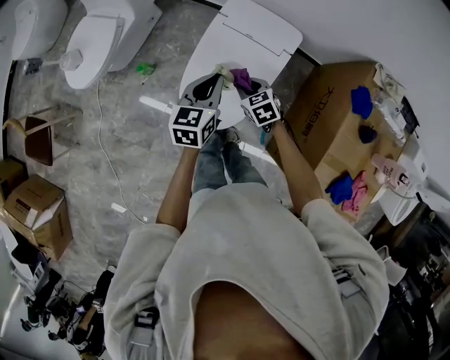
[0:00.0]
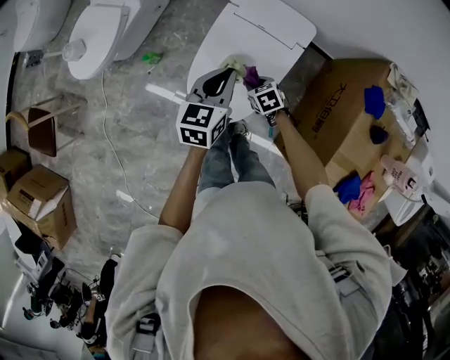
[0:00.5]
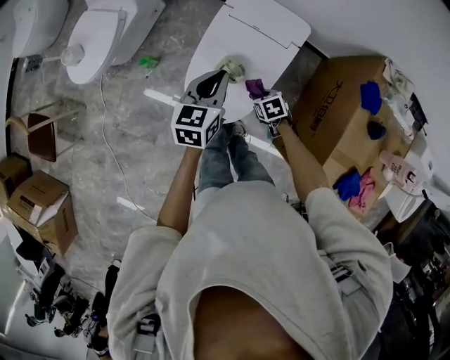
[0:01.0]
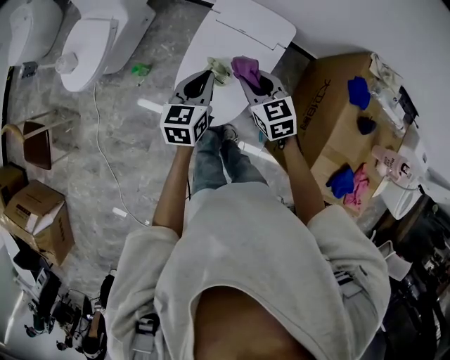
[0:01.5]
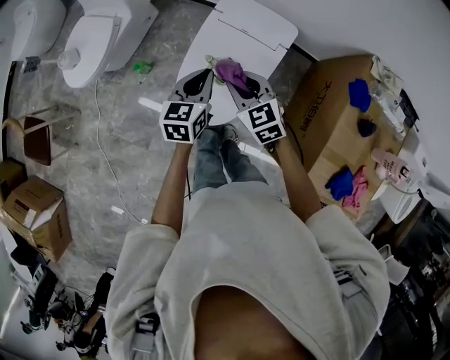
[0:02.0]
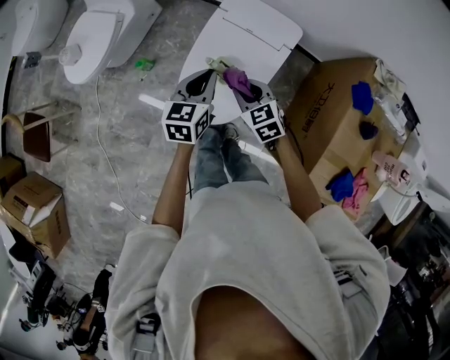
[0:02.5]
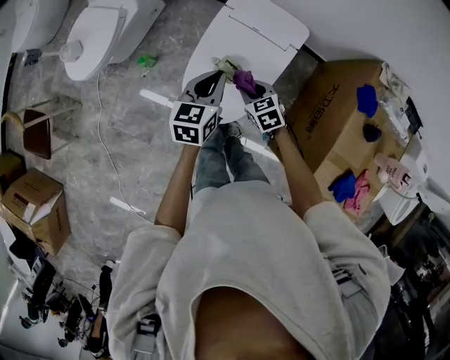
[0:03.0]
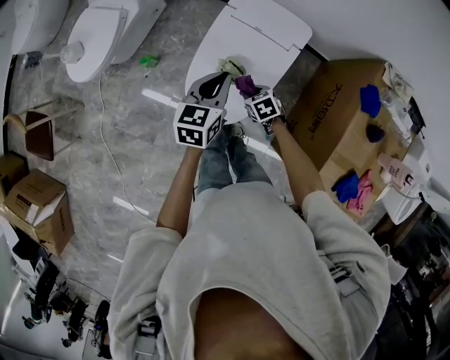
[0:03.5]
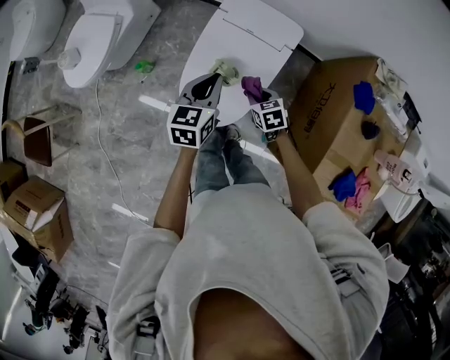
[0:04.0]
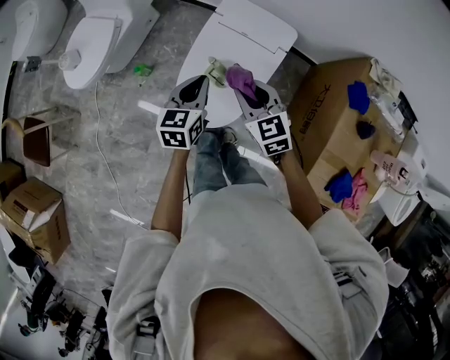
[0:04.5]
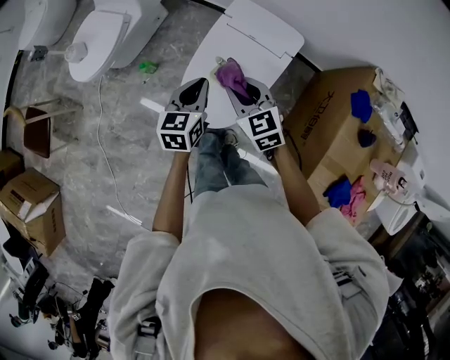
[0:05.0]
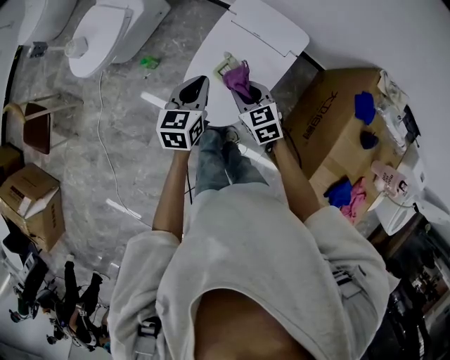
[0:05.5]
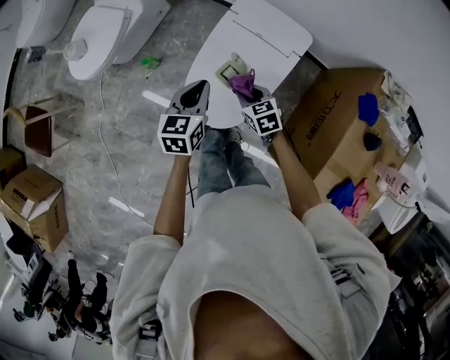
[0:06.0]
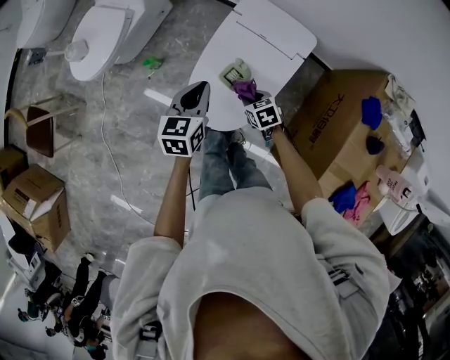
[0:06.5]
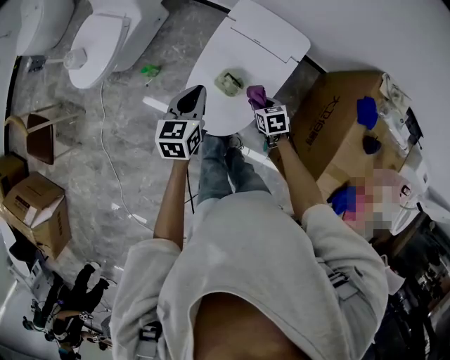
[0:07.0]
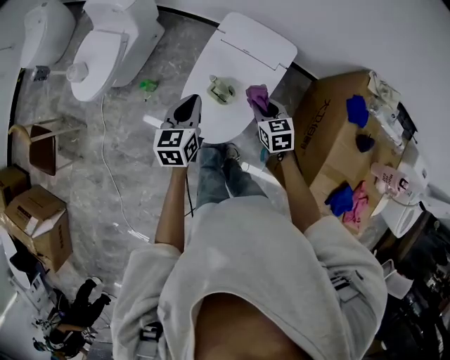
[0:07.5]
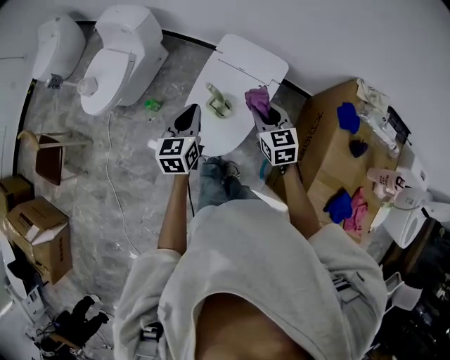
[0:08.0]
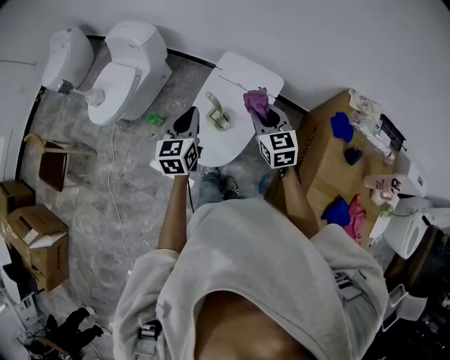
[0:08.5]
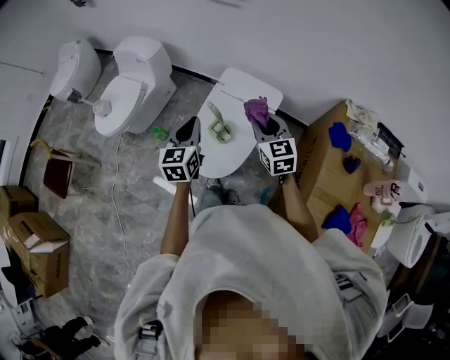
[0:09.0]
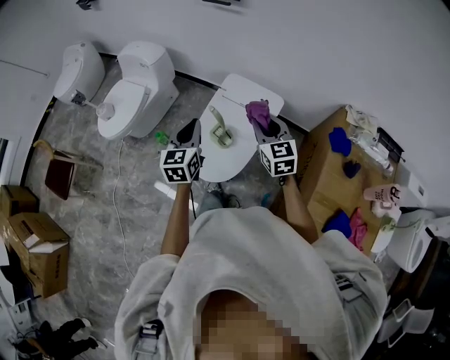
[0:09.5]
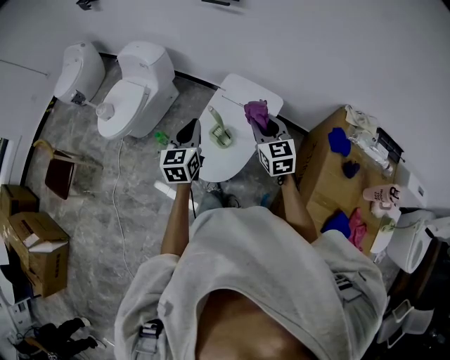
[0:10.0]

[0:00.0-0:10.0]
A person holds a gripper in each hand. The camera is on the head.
0:00.0 to 0:02.0: The right gripper is displaced upward by about 15 cm, and changes its angle by some 20 degrees.
0:02.0 to 0:04.0: The right gripper moves downward, some 15 cm, and swivels some 30 degrees.
0:04.0 to 0:06.0: The two grippers go some 5 cm to the left. The right gripper travels upward and back again, roughly 20 cm each way.
0:06.0 to 0:08.0: The left gripper goes some 5 cm upward; the right gripper heads upward and to the right, covering roughly 20 cm, and swivels roughly 30 degrees.
0:08.0 to 0:10.0: Both grippers travel together upward, roughly 10 cm.

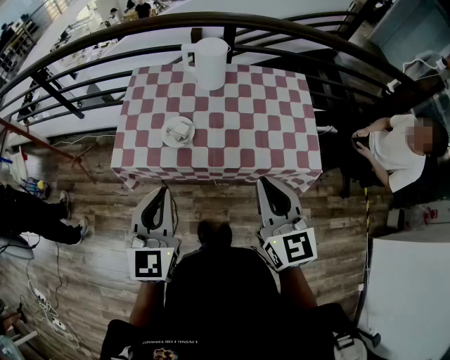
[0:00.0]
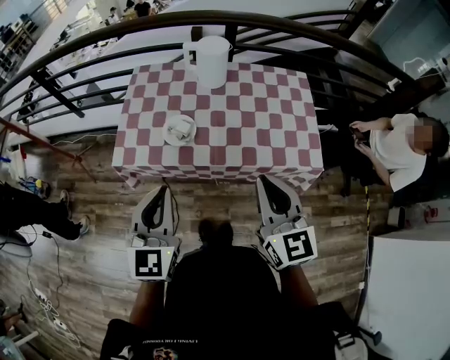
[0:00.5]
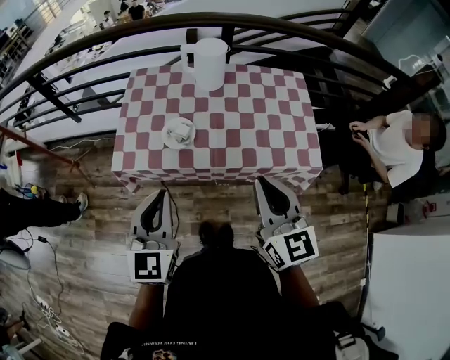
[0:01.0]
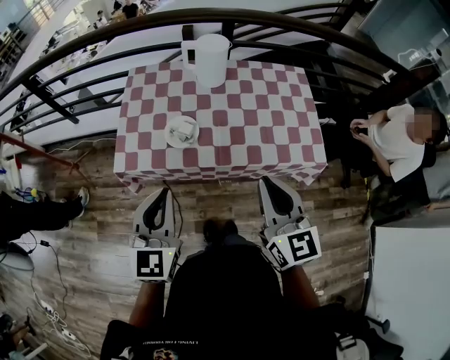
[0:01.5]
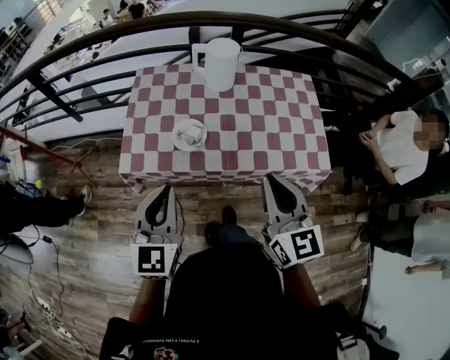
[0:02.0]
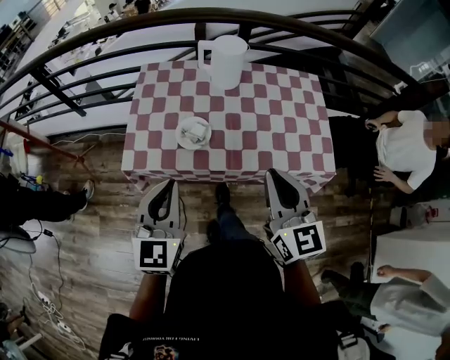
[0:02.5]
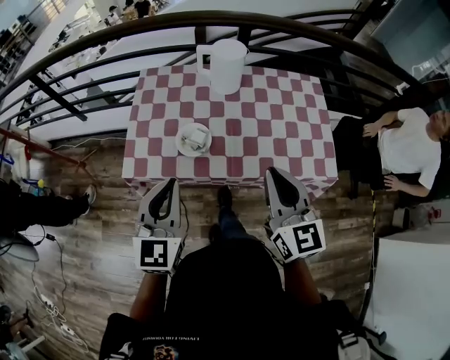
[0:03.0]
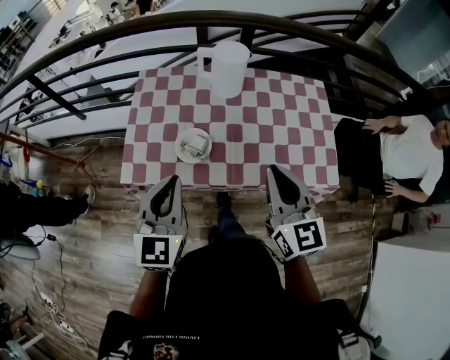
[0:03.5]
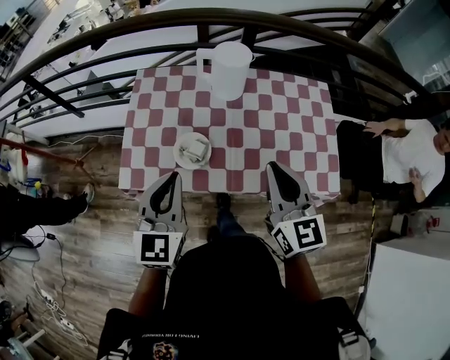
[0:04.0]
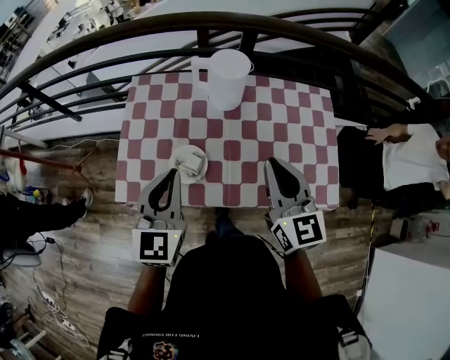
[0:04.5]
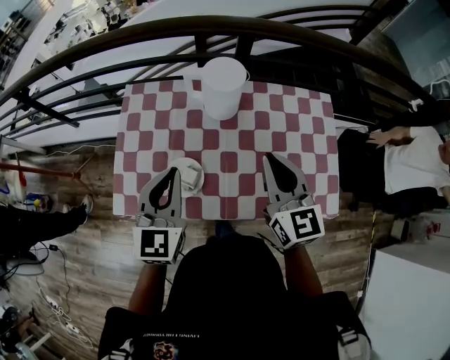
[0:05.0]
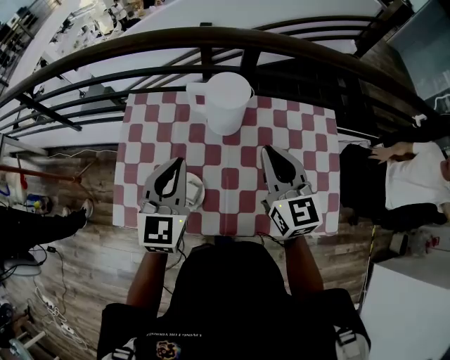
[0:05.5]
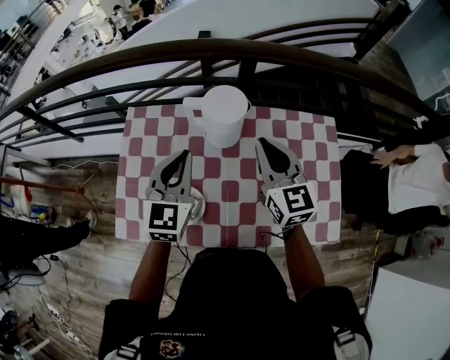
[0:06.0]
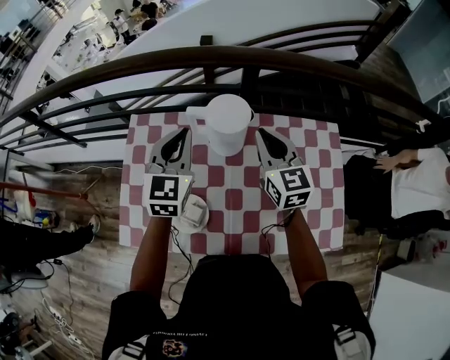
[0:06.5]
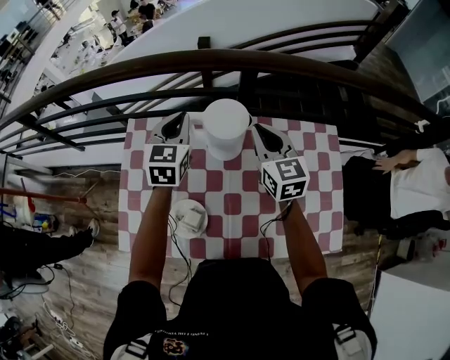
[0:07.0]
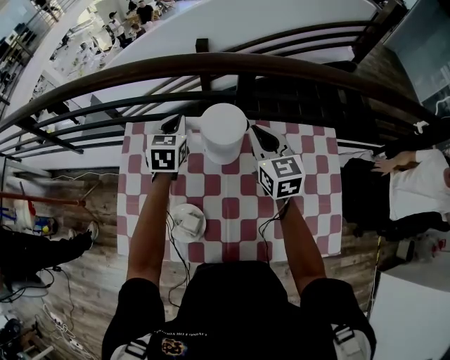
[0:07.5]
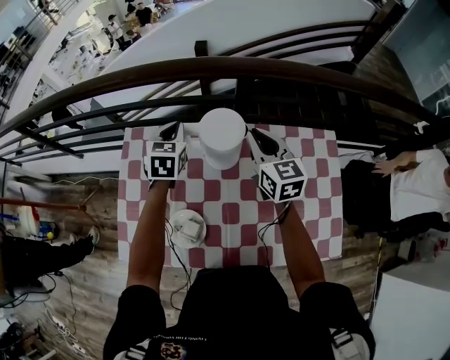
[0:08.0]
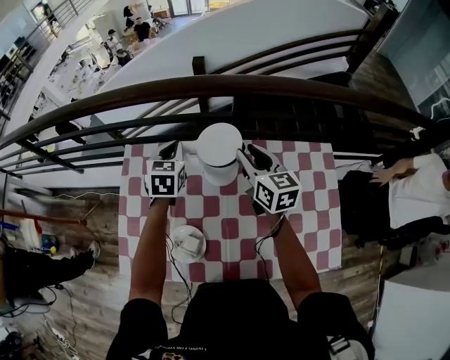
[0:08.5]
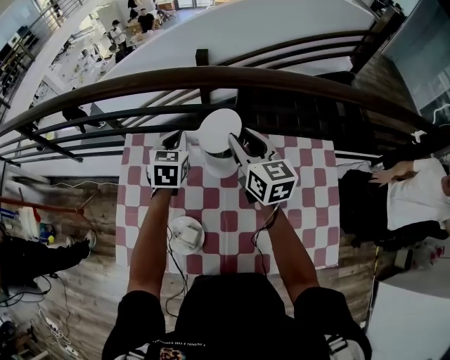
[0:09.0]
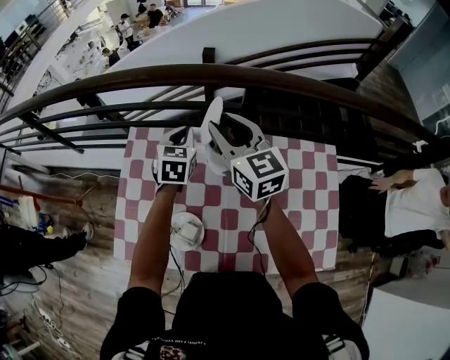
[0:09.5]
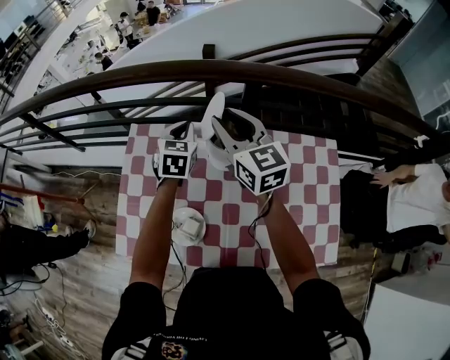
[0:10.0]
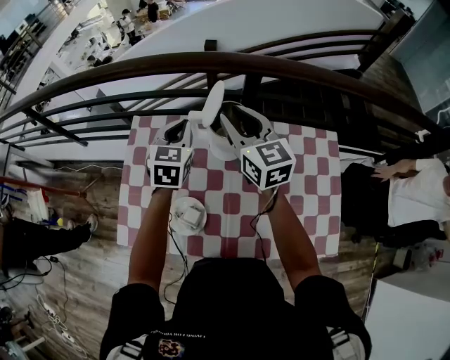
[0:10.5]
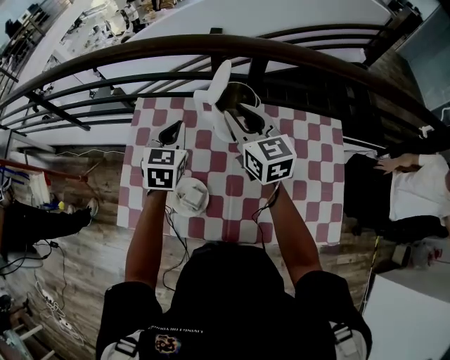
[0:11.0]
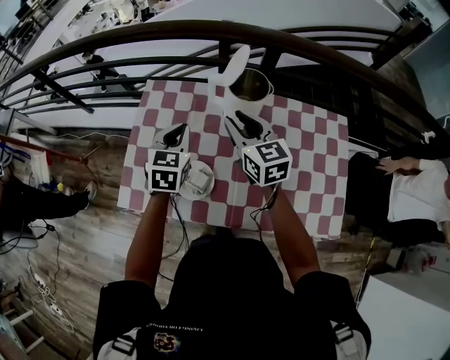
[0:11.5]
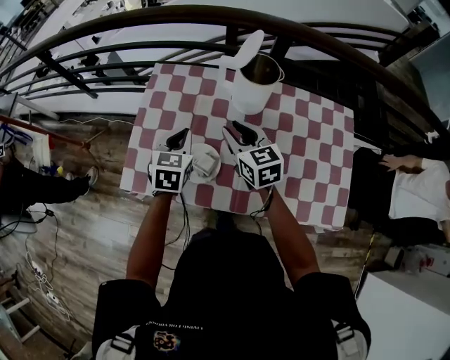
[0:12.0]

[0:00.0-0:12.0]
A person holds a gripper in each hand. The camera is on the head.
0:00.0 to 0:02.0: The grippers both shift to the left by some 5 cm.
0:02.0 to 0:04.0: Both grippers move forward, about 15 cm.
0:04.0 to 0:06.0: Both grippers move forward, approximately 25 cm.
0:06.0 to 0:08.0: The right gripper heads forward, covering roughly 10 cm; the left gripper moves forward and downward, some 20 cm.
0:08.0 to 0:10.0: The right gripper heads to the left and upward, covering roughly 15 cm, and opens.
0:10.0 to 0:12.0: The left gripper shifts approximately 25 cm backward and to the left. Meanwhile the right gripper moves backward, downward and to the left, about 25 cm.

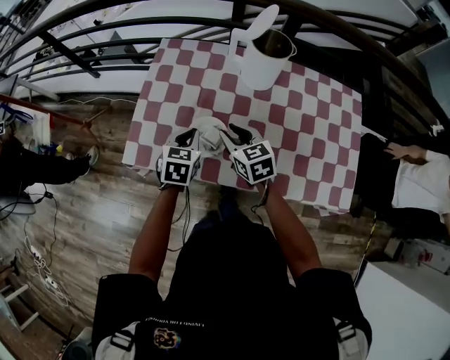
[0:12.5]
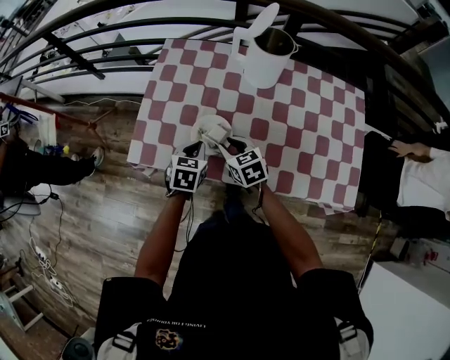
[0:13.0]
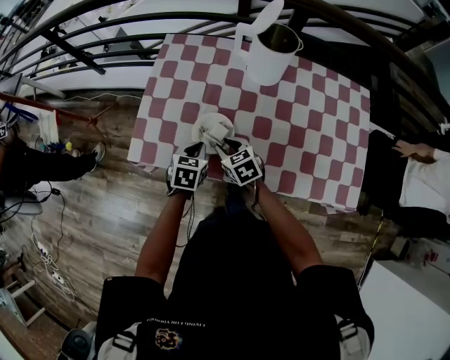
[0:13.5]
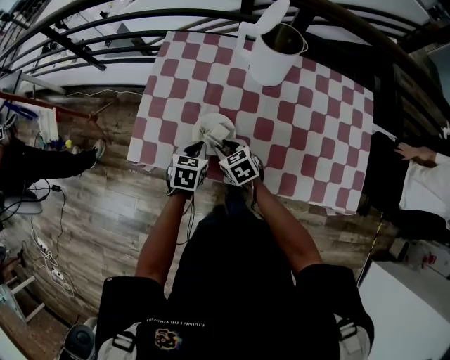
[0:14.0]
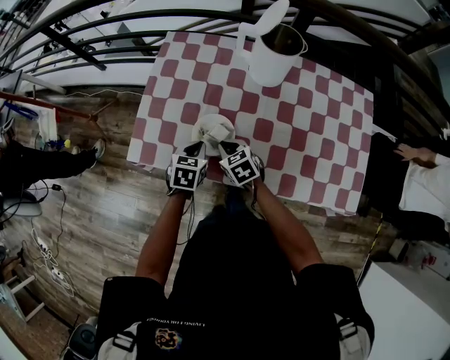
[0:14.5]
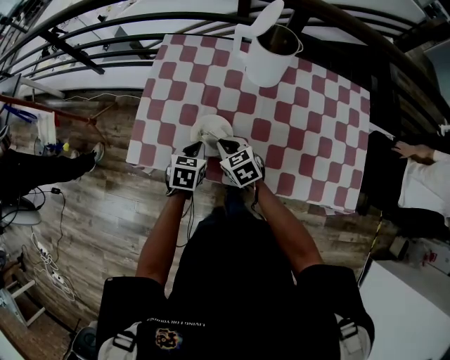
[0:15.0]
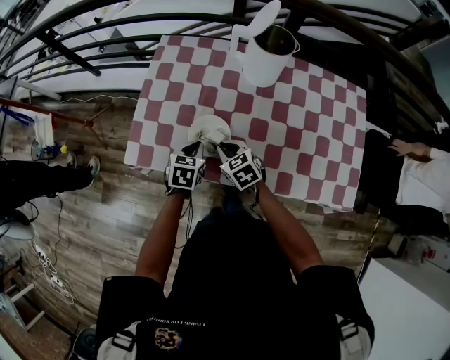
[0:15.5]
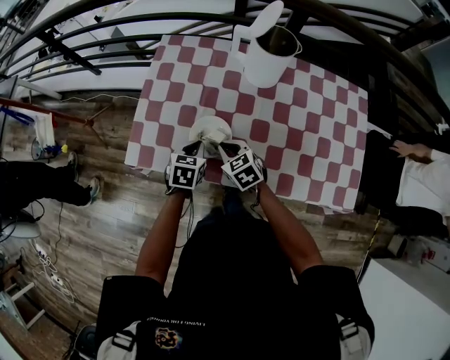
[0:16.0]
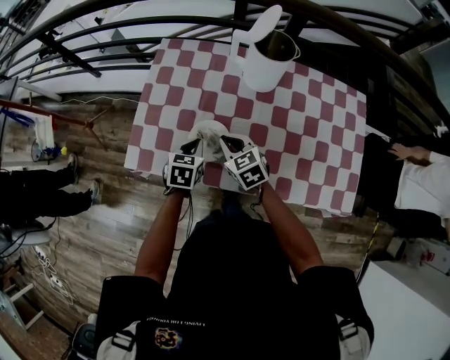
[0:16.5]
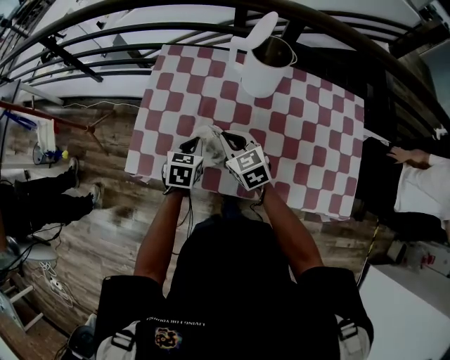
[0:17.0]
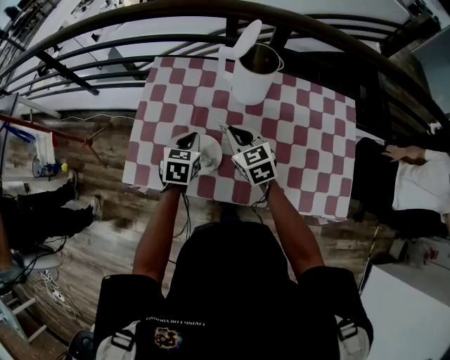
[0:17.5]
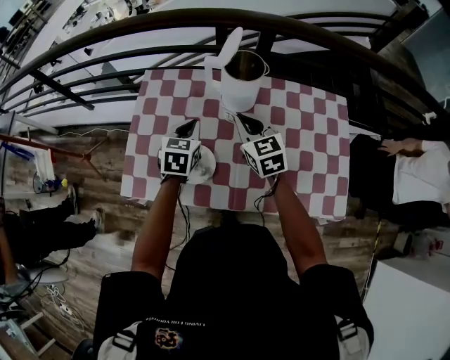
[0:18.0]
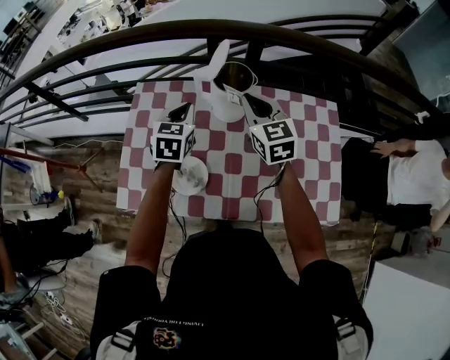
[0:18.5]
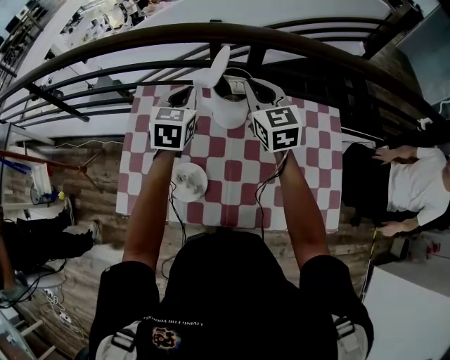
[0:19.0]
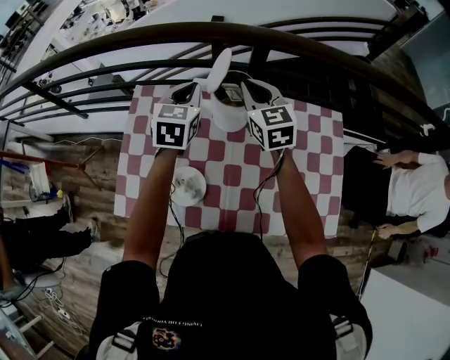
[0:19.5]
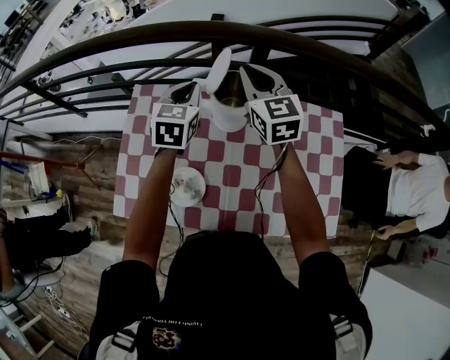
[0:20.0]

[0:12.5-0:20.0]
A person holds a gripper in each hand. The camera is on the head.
0:12.5 to 0:14.5: The two grippers go roughly 10 cm downward. The right gripper closes its fingers.
0:14.5 to 0:16.5: The right gripper goes approximately 5 cm upward.
0:16.5 to 0:18.0: The right gripper shifts some 20 cm to the right, upward and forward; the left gripper heads upward, forward and to the right, covering approximately 15 cm.
0:18.0 to 0:20.0: The two grippers go some 20 cm forward and upward.
